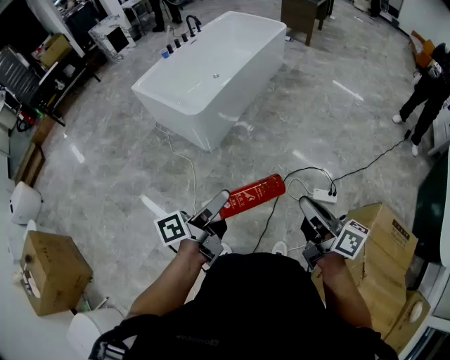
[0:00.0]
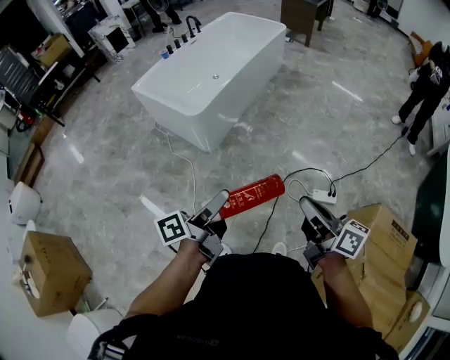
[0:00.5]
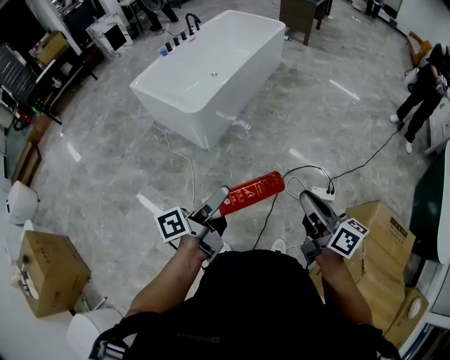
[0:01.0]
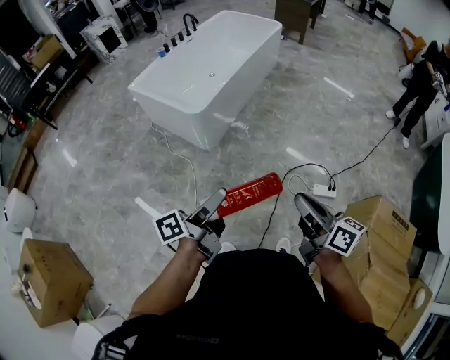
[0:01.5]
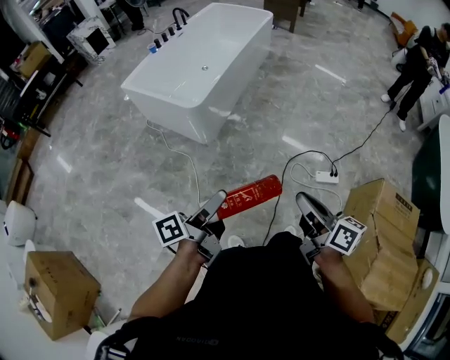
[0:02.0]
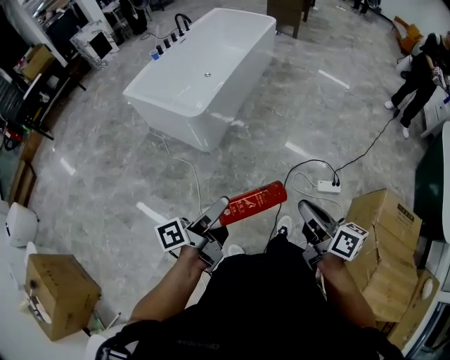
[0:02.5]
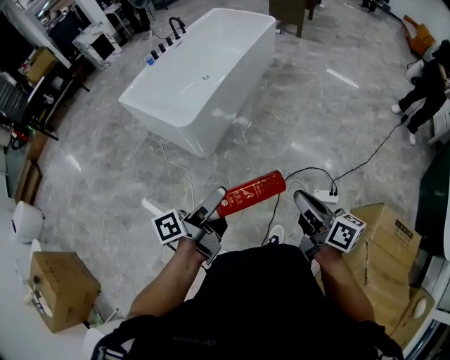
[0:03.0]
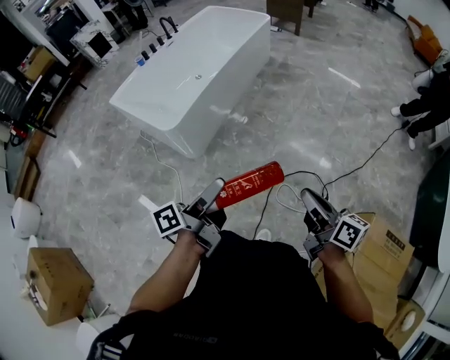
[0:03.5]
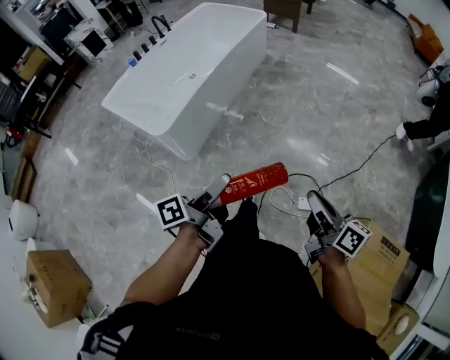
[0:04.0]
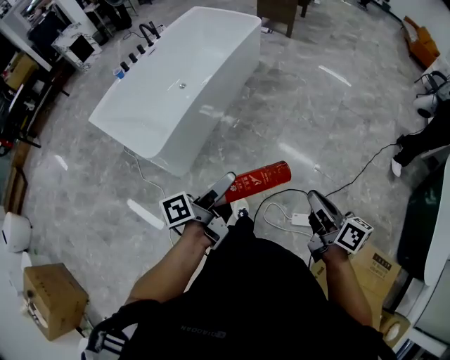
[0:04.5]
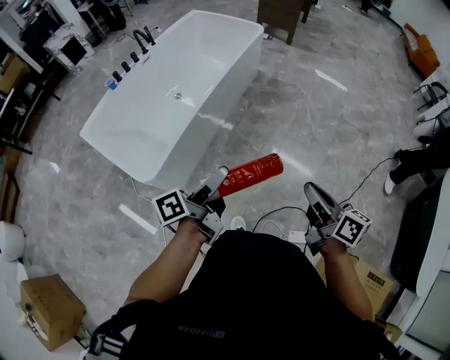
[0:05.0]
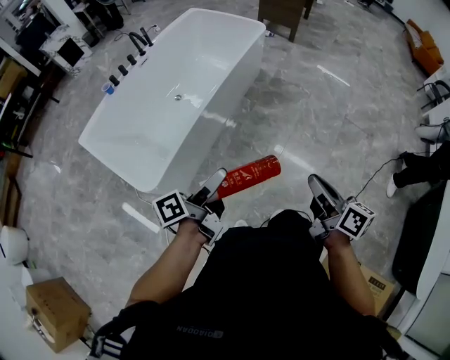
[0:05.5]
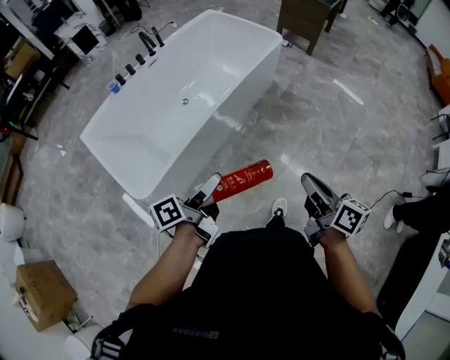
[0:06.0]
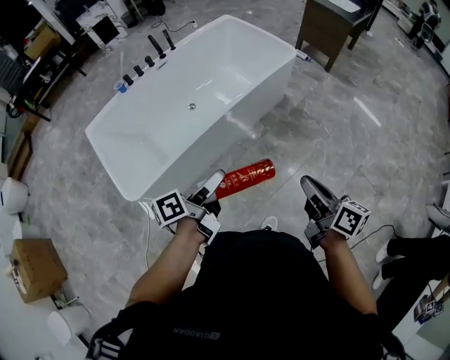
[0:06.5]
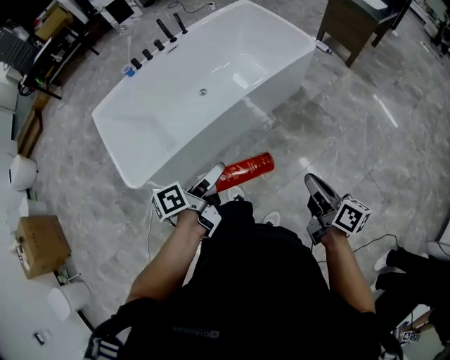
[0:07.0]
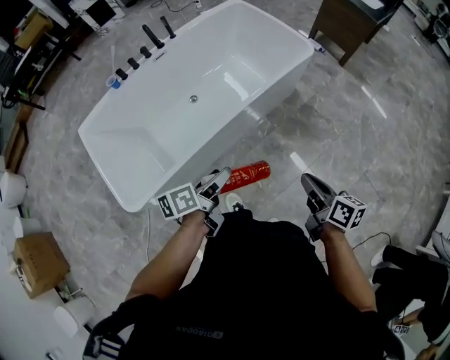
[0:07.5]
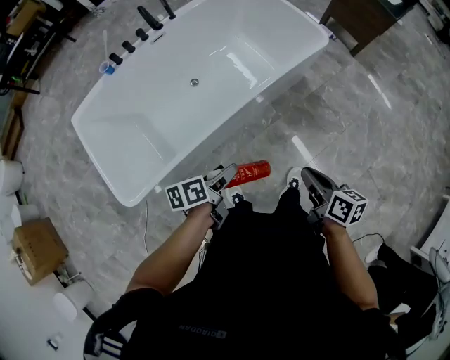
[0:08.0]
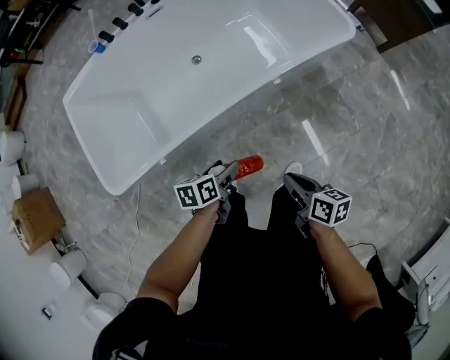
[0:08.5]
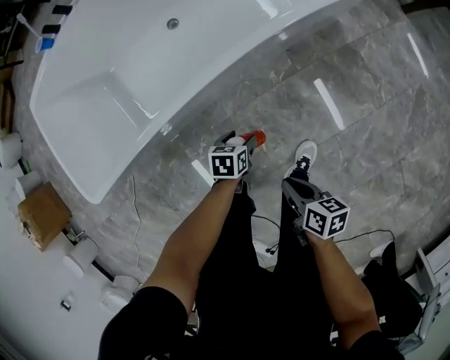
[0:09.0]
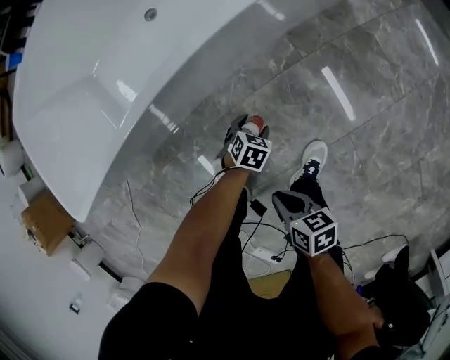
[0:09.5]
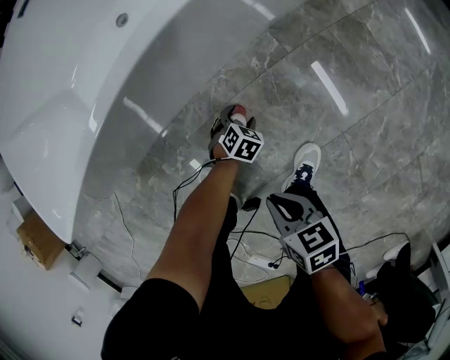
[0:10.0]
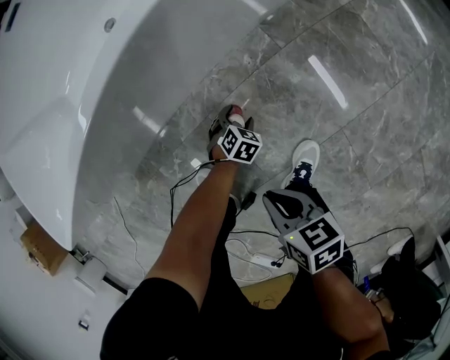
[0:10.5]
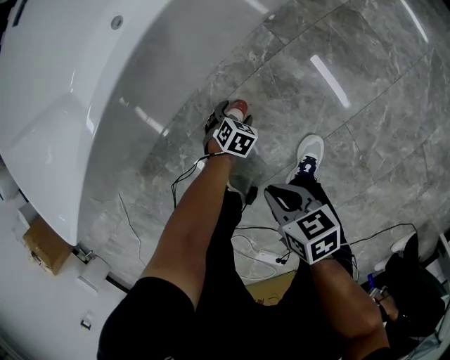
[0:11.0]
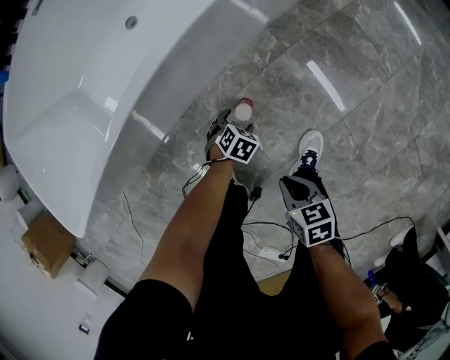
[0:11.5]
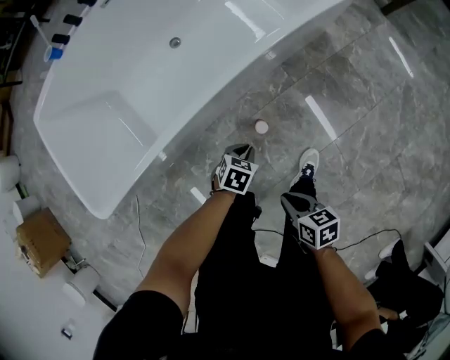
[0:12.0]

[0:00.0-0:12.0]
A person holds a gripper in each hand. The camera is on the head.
0.0 to 2.0 s: Both grippers move to the left, roughly 10 cm.
2.0 to 4.0 s: The right gripper shifts approximately 35 cm to the right and forward; the left gripper travels forward and to the right by approximately 35 cm.
4.0 to 6.0 s: Both grippers are carried forward, some 50 cm.
6.0 to 8.0 s: Both grippers move forward and downward, approximately 30 cm. The left gripper swivels about 30 degrees, while the right gripper turns by approximately 30 degrees.
8.0 to 10.0 s: The grippers both shift downward by about 60 cm. The right gripper swivels some 30 degrees, while the left gripper tips its fingers downward by about 40 degrees.
10.0 to 12.0 s: The left gripper shifts roughly 30 cm upward, and closes up, while the right gripper goes roughly 15 cm upward.

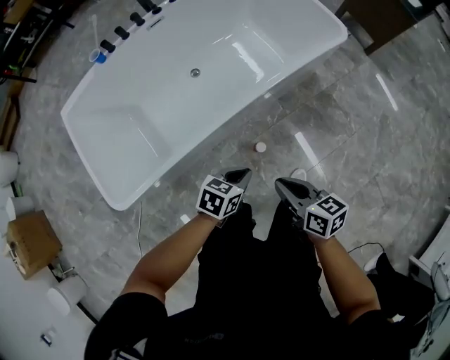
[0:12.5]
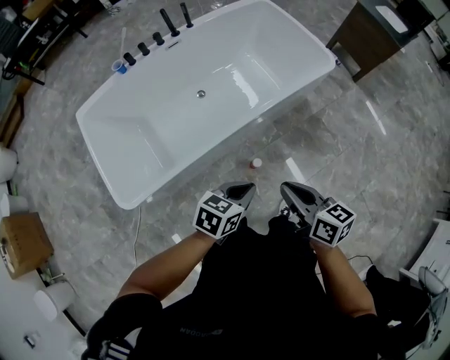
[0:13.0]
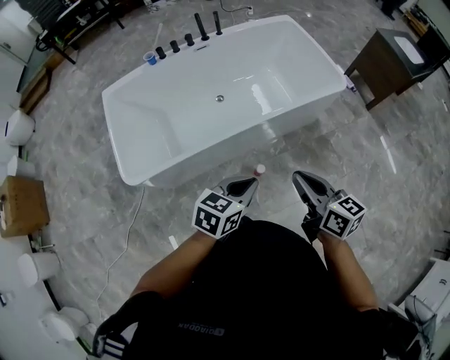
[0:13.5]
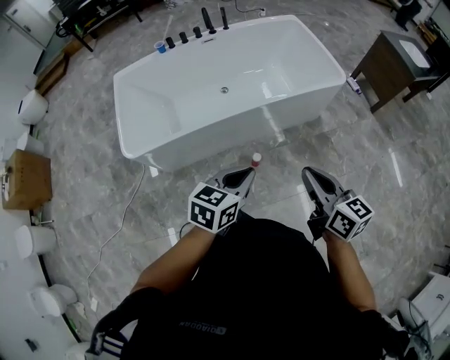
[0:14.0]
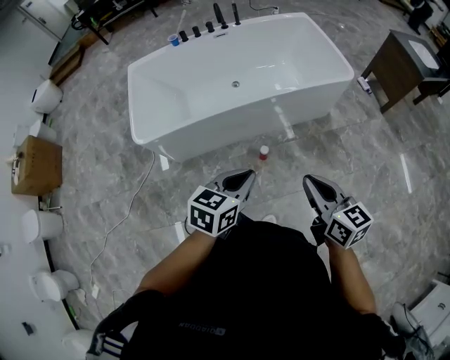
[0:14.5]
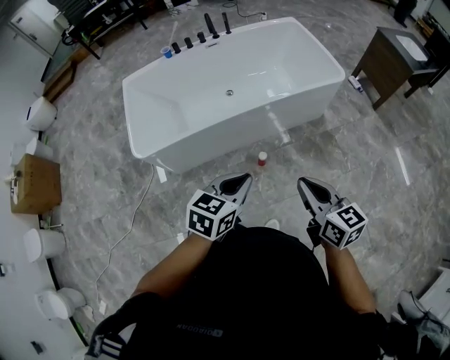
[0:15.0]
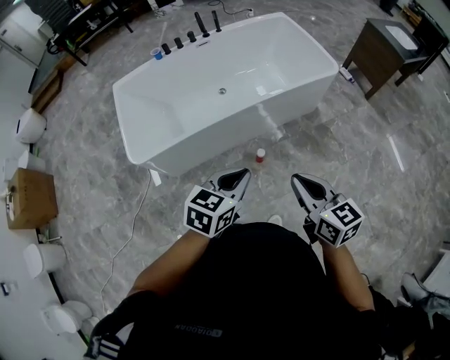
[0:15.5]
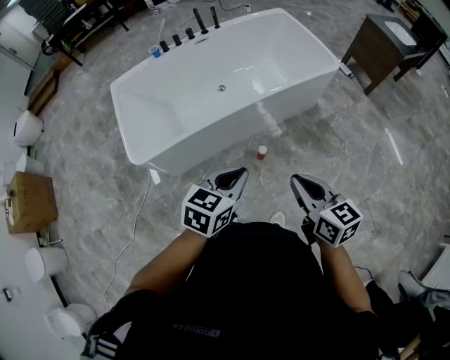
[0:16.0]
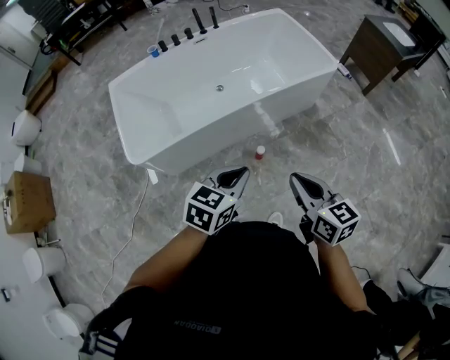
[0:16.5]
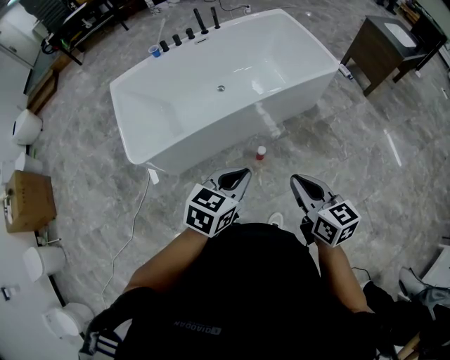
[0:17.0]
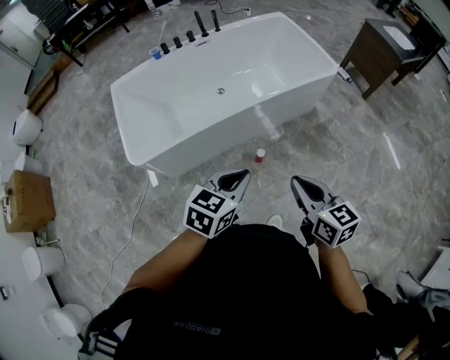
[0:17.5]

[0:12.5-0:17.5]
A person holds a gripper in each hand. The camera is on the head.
12.5 to 15.0 s: The left gripper is displaced upward and backward by about 35 cm, and rotates roughly 30 degrees. The right gripper travels upward, backward and to the right by roughly 30 cm, and rotates roughly 20 degrees.
15.0 to 17.5 s: The right gripper travels to the left by roughly 5 cm.

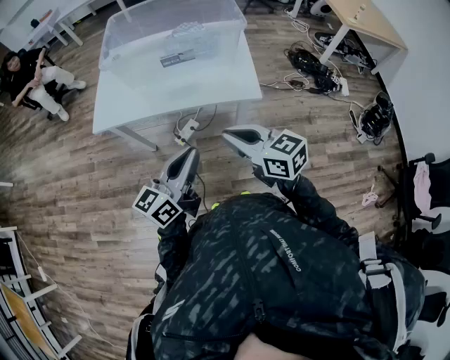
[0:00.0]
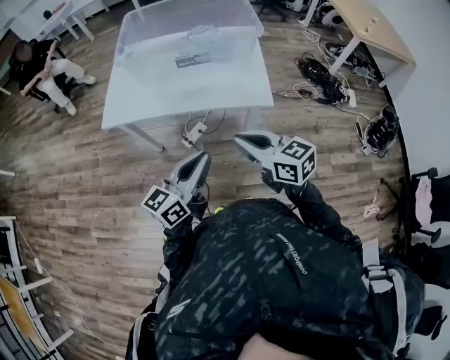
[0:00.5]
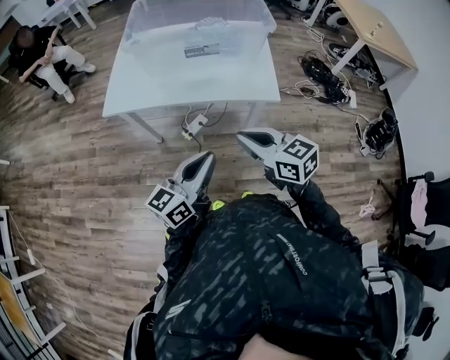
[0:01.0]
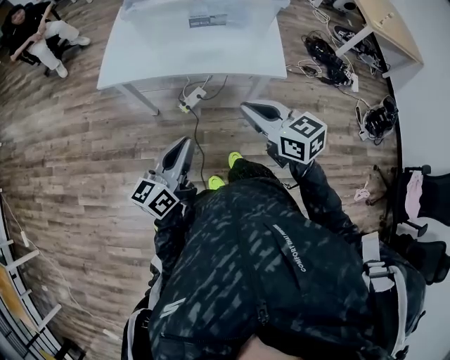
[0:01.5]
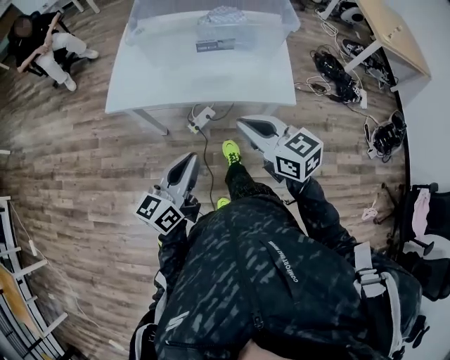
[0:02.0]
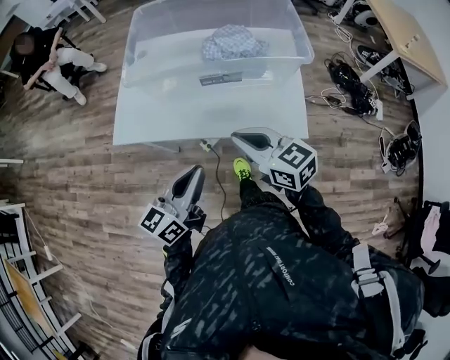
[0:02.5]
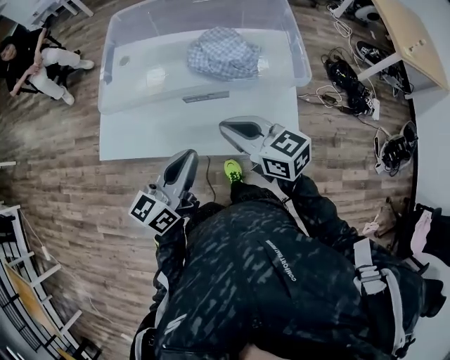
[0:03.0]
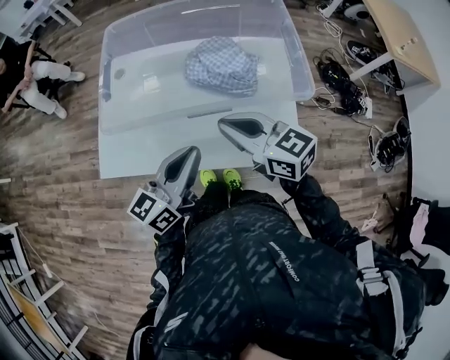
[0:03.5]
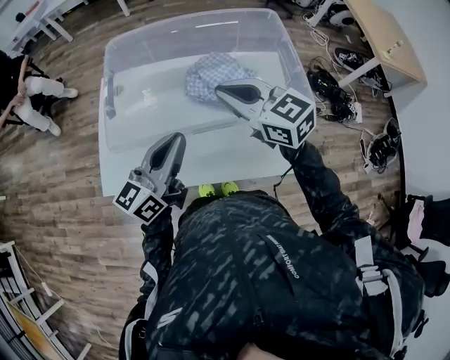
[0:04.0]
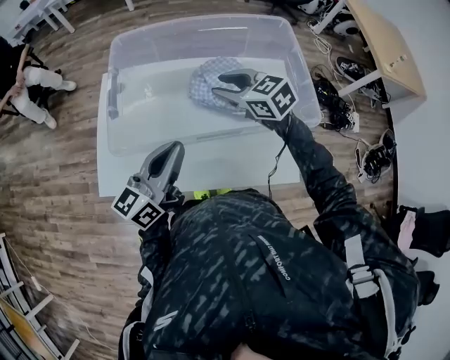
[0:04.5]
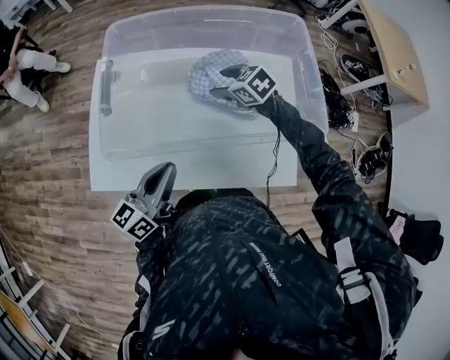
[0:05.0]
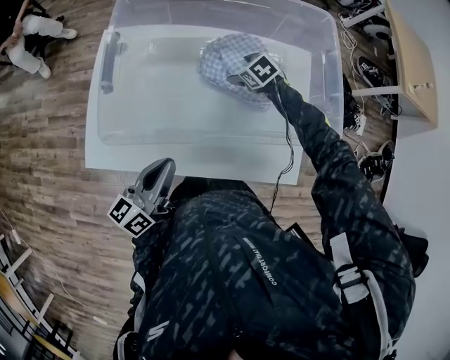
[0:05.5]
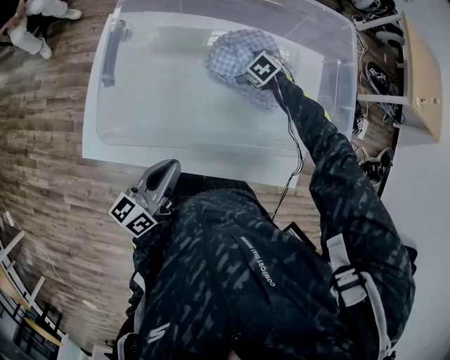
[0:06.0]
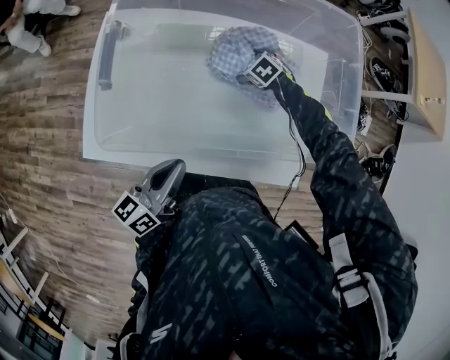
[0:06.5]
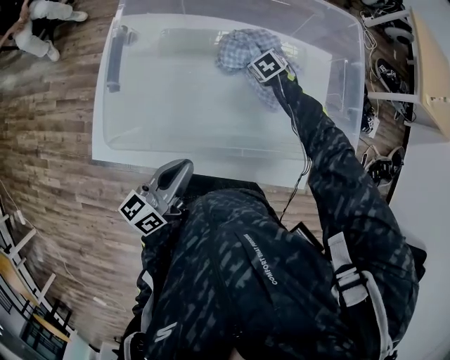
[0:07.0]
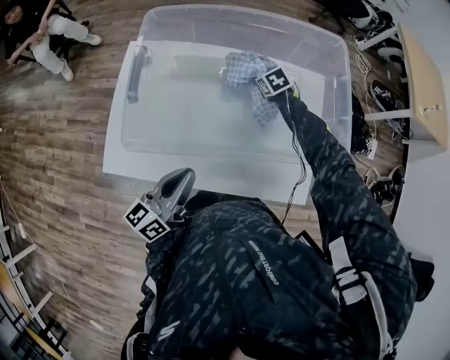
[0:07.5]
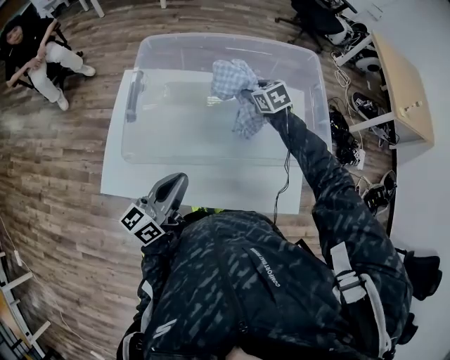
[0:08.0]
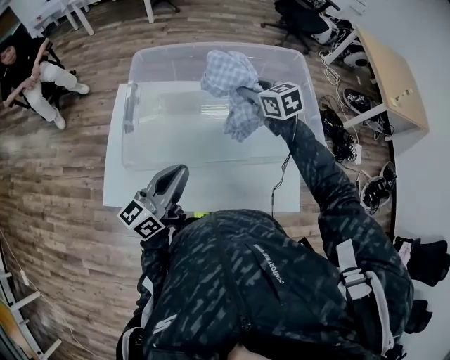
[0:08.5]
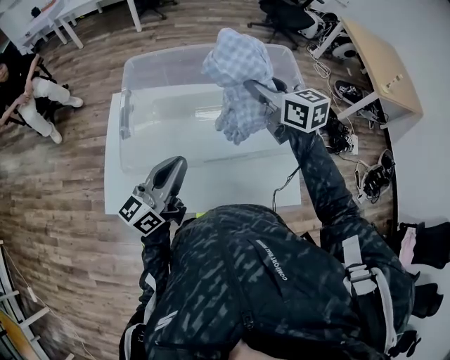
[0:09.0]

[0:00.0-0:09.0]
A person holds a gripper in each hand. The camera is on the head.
0.0 to 2.0 s: The right gripper travels forward and to the left by some 10 cm, while the left gripper is displaced to the left by about 10 cm.
2.0 to 4.5 s: Both grippers are carried forward, roughly 40 cm. The right gripper rotates some 20 degrees.
4.5 to 7.0 s: The left gripper is displaced downward by some 10 cm, and swivels about 20 degrees, while the right gripper moves downward, some 30 cm, tips its fingers downward by some 40 degrees, and opens, then closes once more.
7.0 to 9.0 s: The right gripper heads upward, covering approximately 40 cm, and tips its fingers upward by roughly 60 degrees. Meanwhile the left gripper goes roughly 10 cm upward, and swivels roughly 30 degrees.

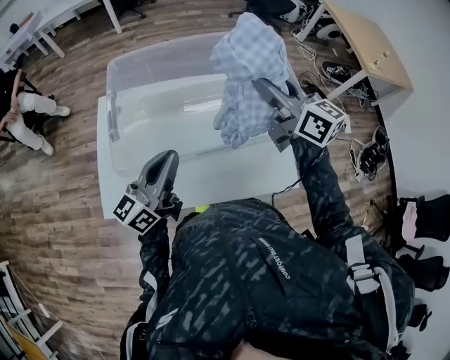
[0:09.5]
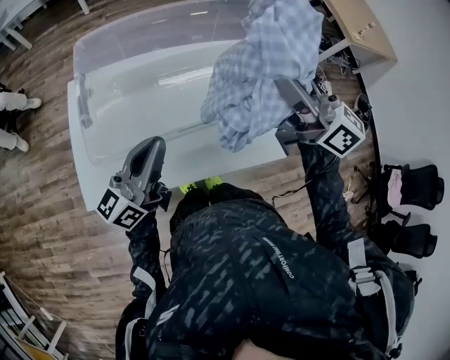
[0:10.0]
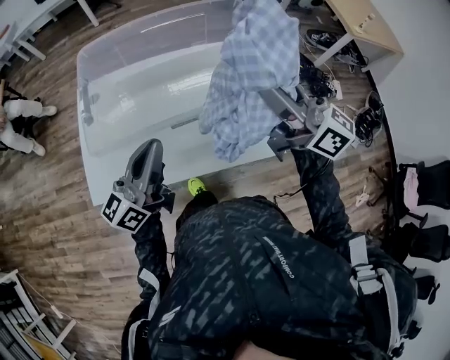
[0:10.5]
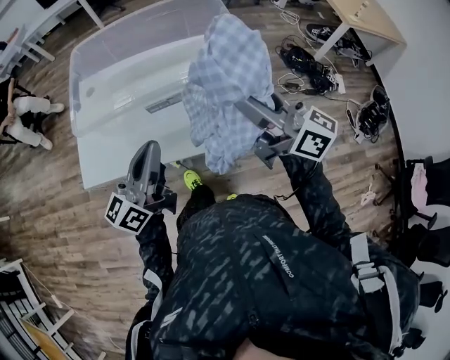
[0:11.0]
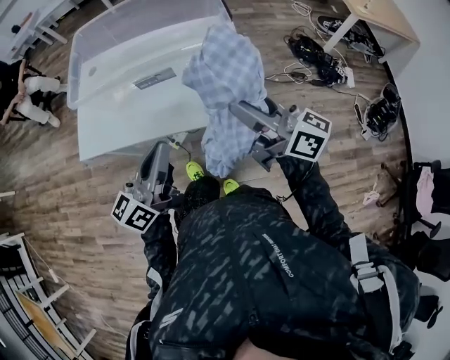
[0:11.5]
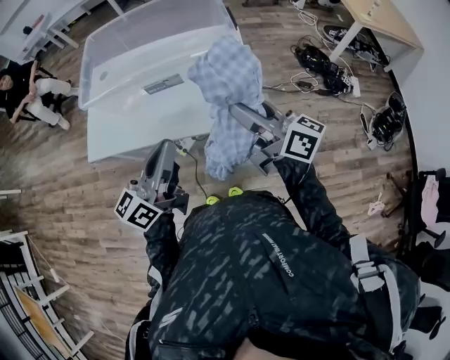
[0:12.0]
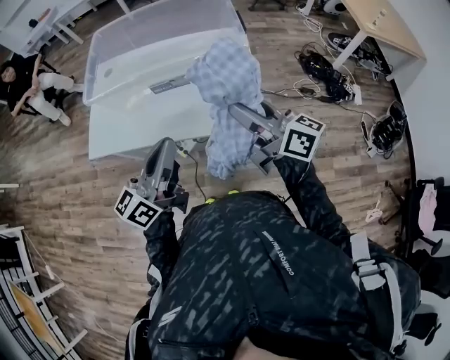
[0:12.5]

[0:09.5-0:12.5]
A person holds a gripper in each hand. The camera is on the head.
9.5 to 11.0 s: The grippers both shift backward and to the right by about 25 cm.
11.0 to 12.5 s: The left gripper moves backward and to the right, about 15 cm. The right gripper is displaced backward and downward by about 10 cm.
